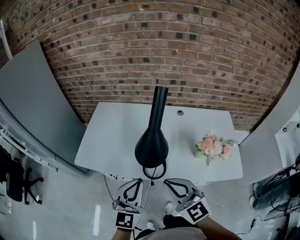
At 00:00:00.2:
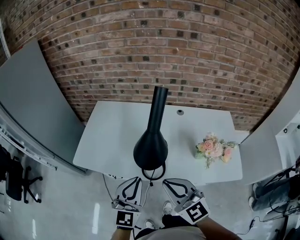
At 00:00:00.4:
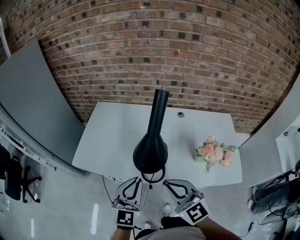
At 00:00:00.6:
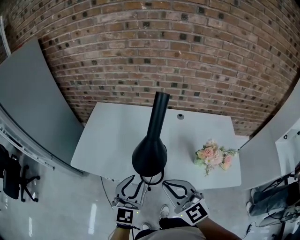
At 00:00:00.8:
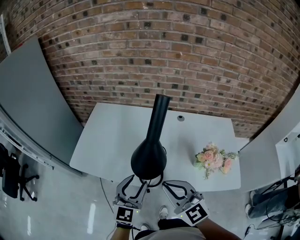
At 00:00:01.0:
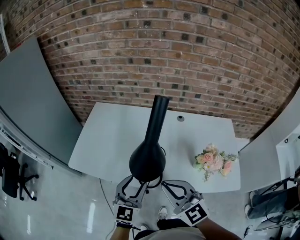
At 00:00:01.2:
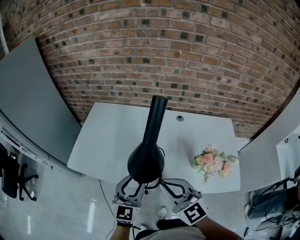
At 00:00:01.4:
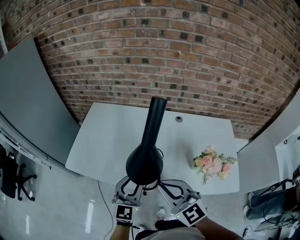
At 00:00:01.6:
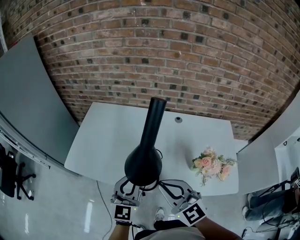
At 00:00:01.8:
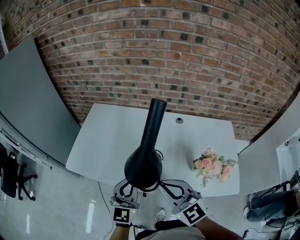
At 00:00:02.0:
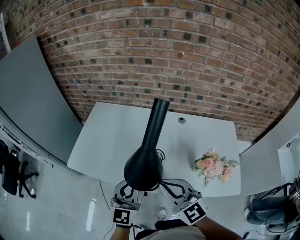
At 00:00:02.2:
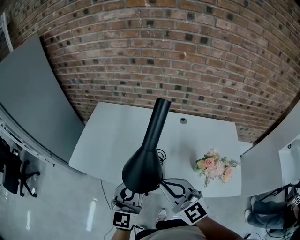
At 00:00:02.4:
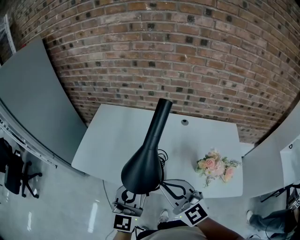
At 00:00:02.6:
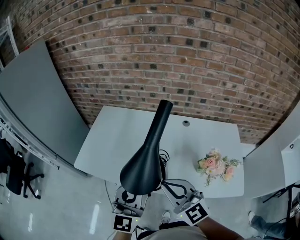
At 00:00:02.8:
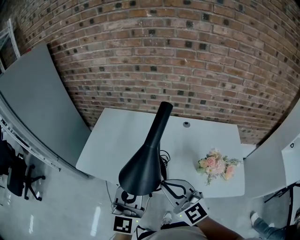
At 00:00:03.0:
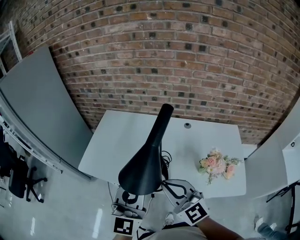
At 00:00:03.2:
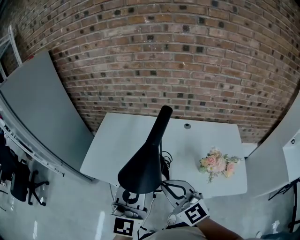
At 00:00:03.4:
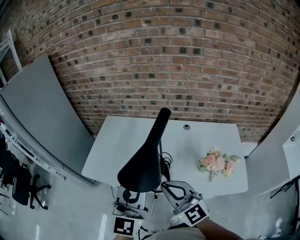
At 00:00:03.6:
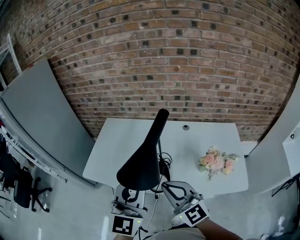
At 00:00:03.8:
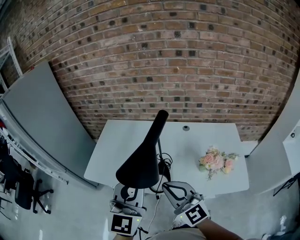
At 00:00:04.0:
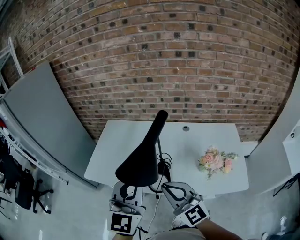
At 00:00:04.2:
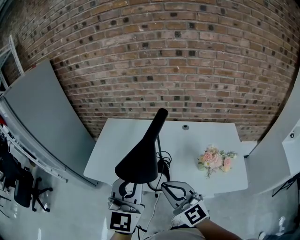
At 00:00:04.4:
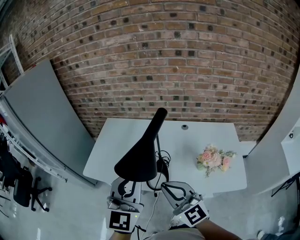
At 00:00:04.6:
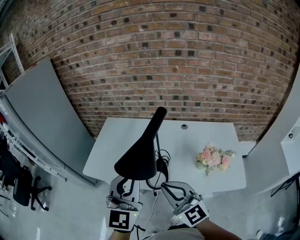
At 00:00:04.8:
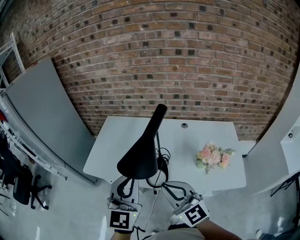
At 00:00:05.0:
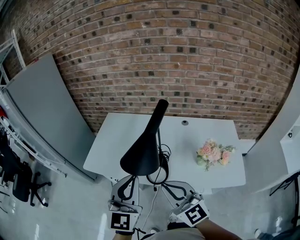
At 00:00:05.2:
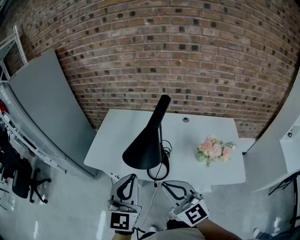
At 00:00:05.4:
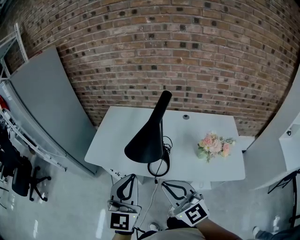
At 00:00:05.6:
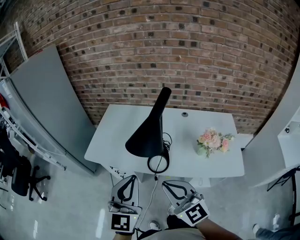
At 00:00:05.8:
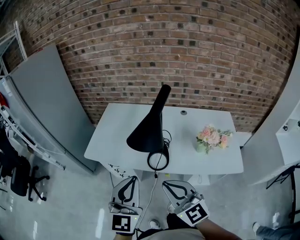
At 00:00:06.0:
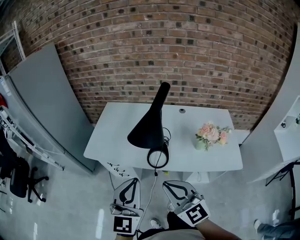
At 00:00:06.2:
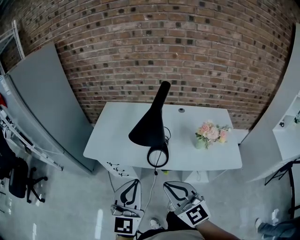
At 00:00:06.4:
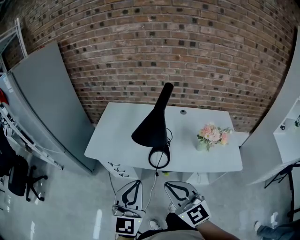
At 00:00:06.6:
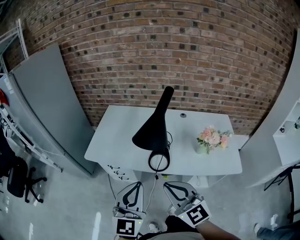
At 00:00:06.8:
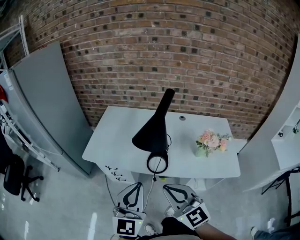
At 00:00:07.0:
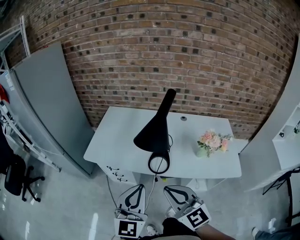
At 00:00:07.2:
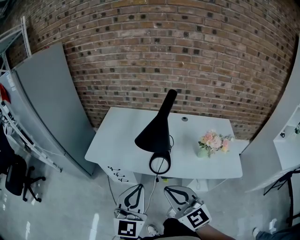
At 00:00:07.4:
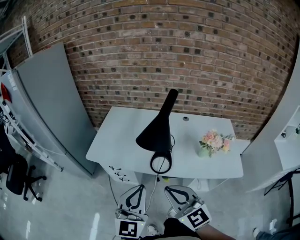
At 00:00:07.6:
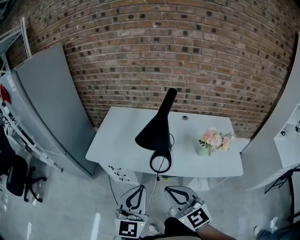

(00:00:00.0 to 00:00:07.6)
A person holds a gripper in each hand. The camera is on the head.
00:00:00.0 - 00:00:01.6: The left gripper moves forward and downward, some 10 cm, and opens, then closes once more; the right gripper moves forward, some 5 cm.
00:00:01.6 - 00:00:03.0: The left gripper heads upward and backward, covering some 15 cm.
00:00:03.0 - 00:00:04.6: The right gripper ends up some 5 cm from where it was. Meanwhile the left gripper travels upward by approximately 5 cm.
00:00:04.6 - 00:00:06.0: The right gripper heads backward and to the left, covering approximately 10 cm. Meanwhile the left gripper travels backward, downward and to the left by approximately 15 cm.
00:00:06.0 - 00:00:07.6: The grippers stay close to where they were, moving slightly.

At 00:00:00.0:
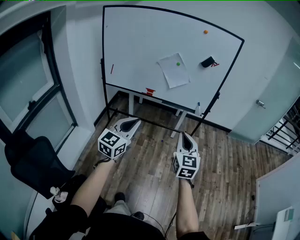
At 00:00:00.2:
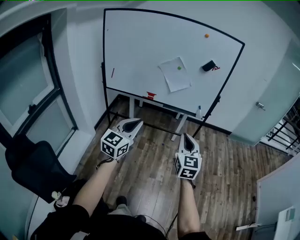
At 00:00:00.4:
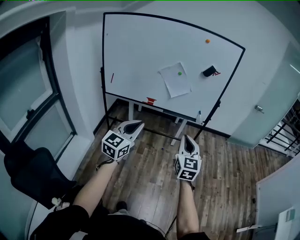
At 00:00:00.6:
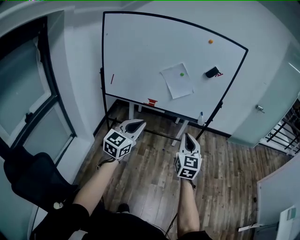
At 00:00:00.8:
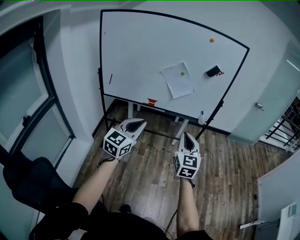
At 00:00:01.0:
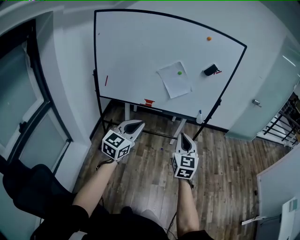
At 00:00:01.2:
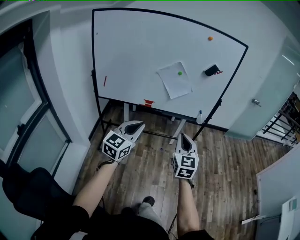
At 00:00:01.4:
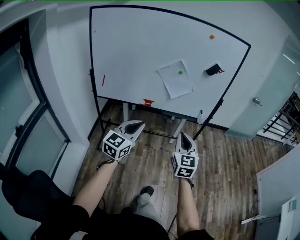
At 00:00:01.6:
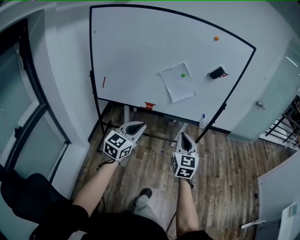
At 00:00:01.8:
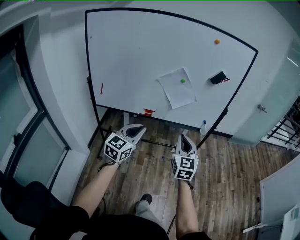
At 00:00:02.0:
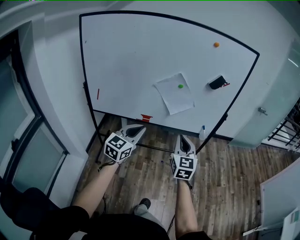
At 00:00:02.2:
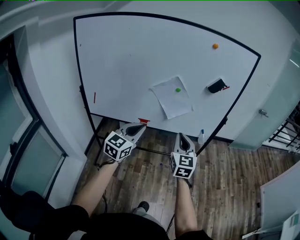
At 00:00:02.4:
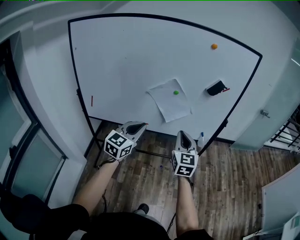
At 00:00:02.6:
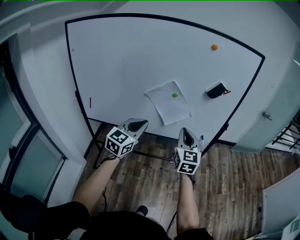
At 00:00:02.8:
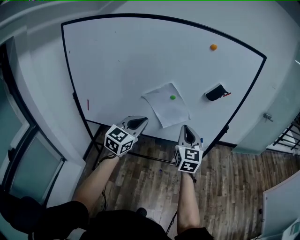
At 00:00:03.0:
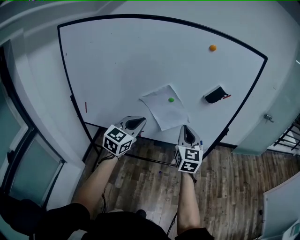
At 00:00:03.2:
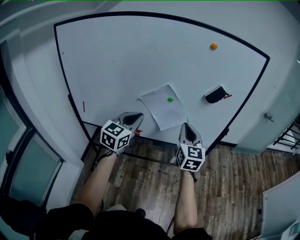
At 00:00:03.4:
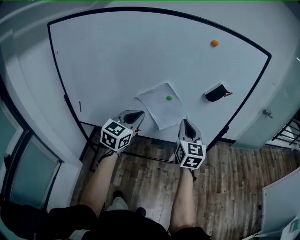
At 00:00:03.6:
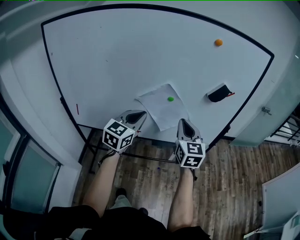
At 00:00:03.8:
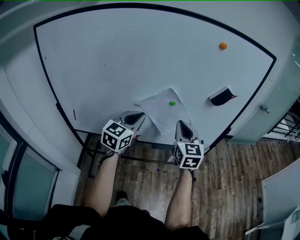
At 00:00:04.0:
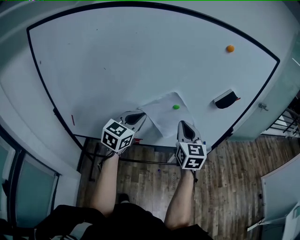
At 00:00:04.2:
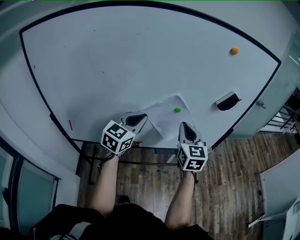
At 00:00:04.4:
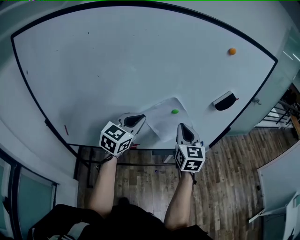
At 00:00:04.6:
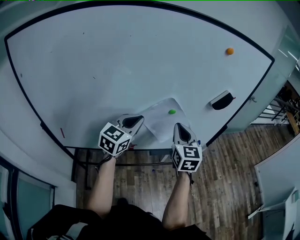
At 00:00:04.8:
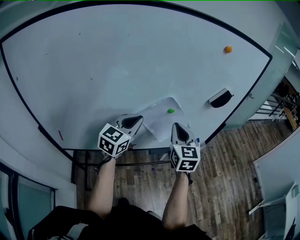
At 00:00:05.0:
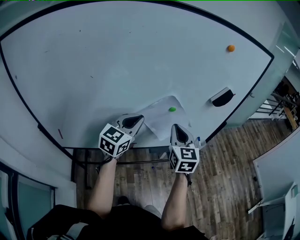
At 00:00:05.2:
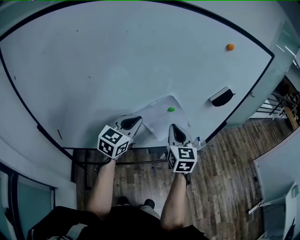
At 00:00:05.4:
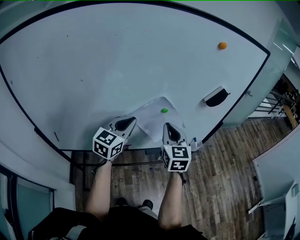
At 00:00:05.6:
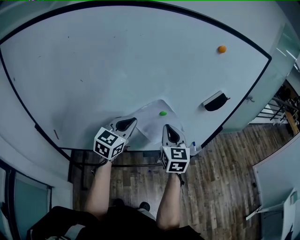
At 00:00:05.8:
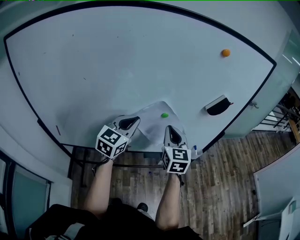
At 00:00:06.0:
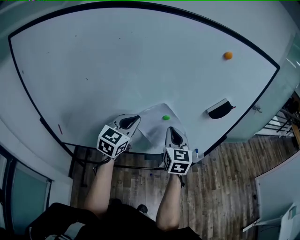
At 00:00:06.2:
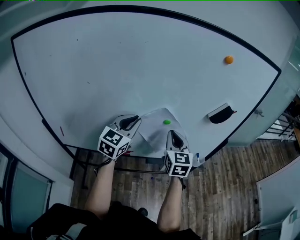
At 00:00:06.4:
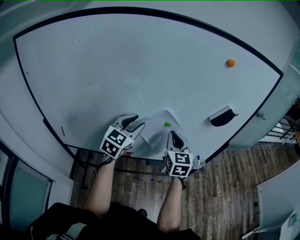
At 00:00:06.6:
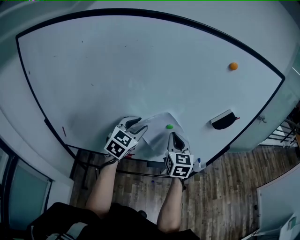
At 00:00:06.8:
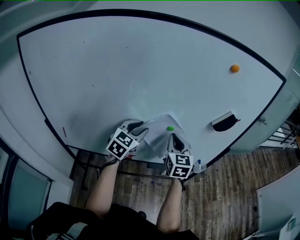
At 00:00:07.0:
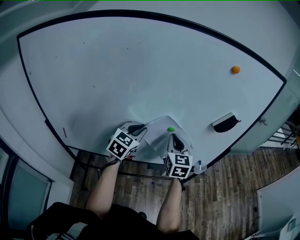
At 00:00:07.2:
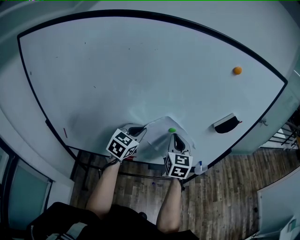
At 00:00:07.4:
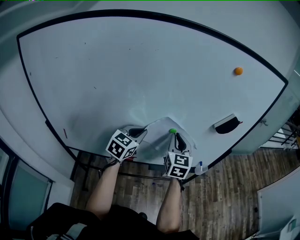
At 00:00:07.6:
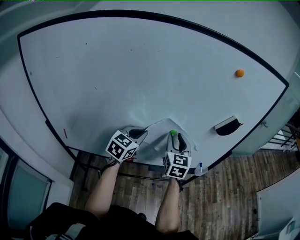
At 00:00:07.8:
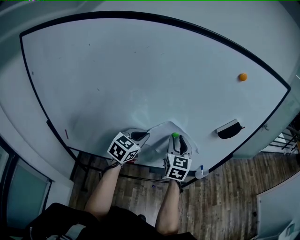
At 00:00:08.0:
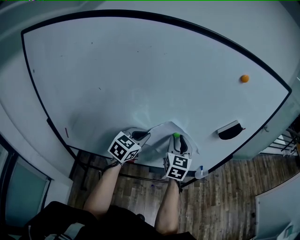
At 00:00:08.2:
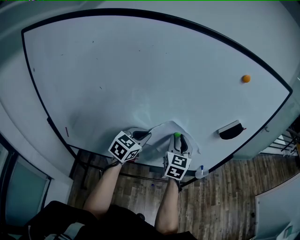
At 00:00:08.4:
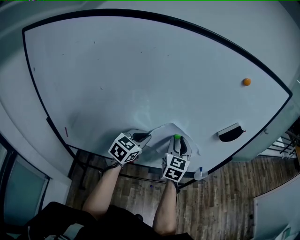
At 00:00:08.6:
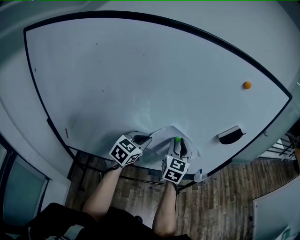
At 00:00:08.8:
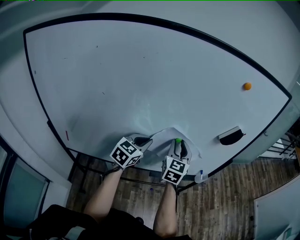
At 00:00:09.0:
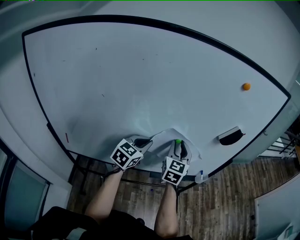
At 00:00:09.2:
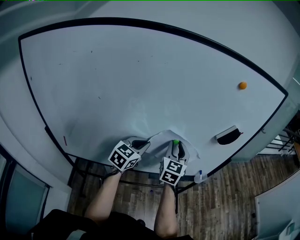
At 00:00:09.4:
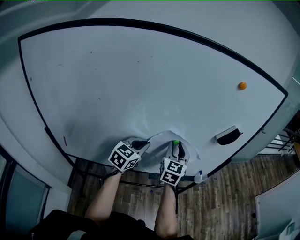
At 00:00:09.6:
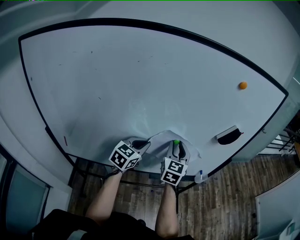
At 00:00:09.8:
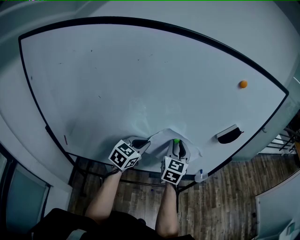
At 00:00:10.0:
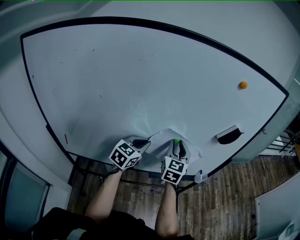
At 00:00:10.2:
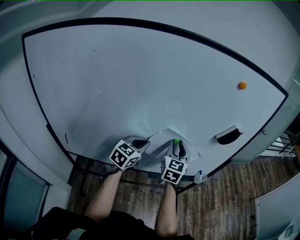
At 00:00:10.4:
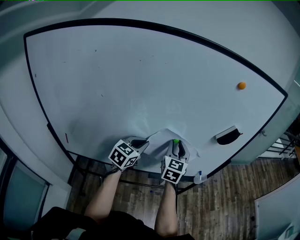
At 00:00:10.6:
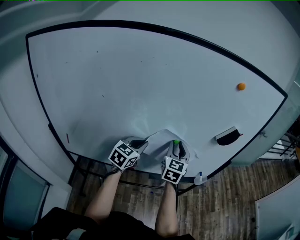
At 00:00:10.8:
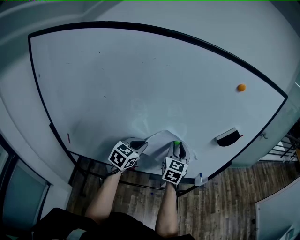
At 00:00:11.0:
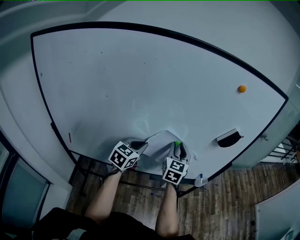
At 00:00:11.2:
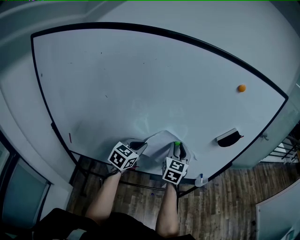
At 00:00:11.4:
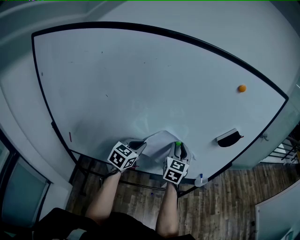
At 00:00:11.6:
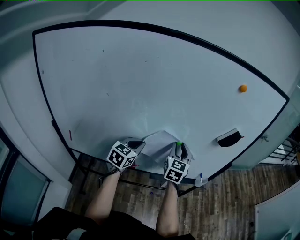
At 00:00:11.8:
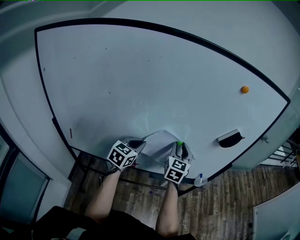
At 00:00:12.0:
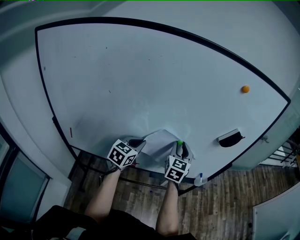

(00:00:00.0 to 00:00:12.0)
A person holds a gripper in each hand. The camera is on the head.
00:00:00.0 - 00:00:01.6: Both grippers travel together forward and to the left, approximately 20 cm.
00:00:01.6 - 00:00:03.0: Both grippers move forward, some 30 cm.
00:00:03.0 - 00:00:04.4: Both grippers move forward and to the left, about 15 cm.
00:00:04.4 - 00:00:06.0: There are only small adjustments of the grippers.
00:00:06.0 - 00:00:07.6: The left gripper changes place by approximately 5 cm, and opens, then closes once more; the right gripper opens its fingers.
00:00:07.6 - 00:00:09.0: The grippers move only a little.
00:00:09.0 - 00:00:10.4: Neither gripper changes place.
00:00:10.4 - 00:00:12.0: The grippers move only a little.

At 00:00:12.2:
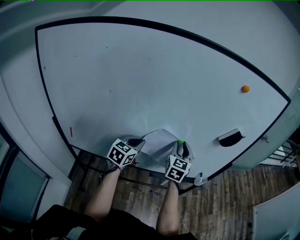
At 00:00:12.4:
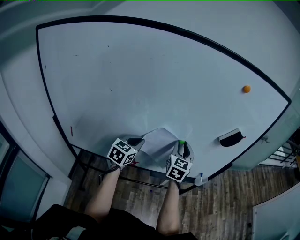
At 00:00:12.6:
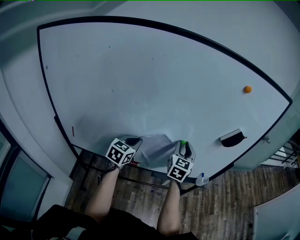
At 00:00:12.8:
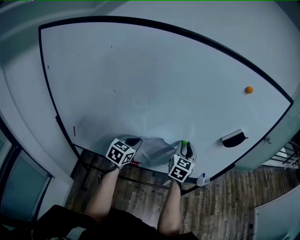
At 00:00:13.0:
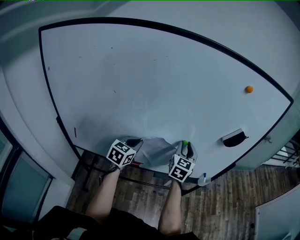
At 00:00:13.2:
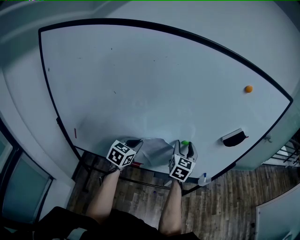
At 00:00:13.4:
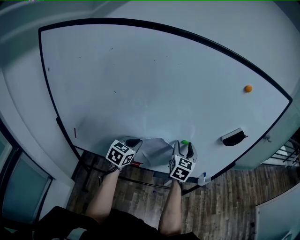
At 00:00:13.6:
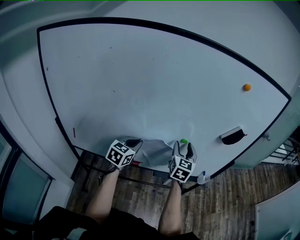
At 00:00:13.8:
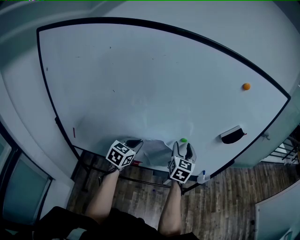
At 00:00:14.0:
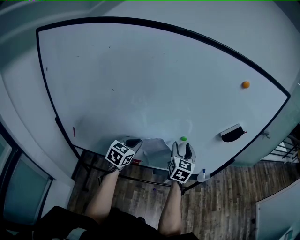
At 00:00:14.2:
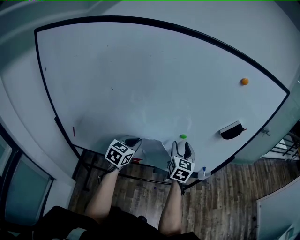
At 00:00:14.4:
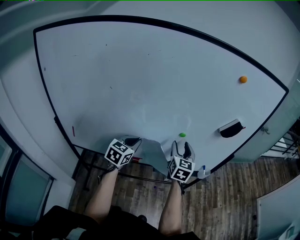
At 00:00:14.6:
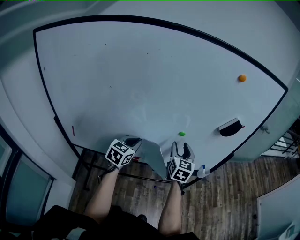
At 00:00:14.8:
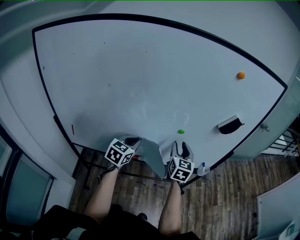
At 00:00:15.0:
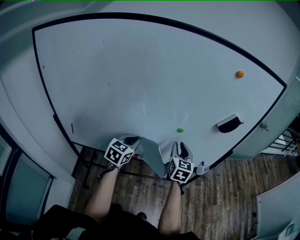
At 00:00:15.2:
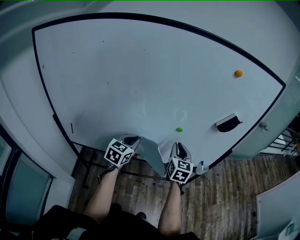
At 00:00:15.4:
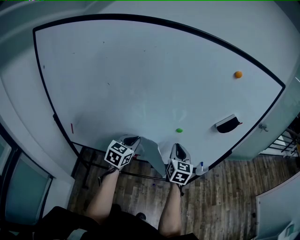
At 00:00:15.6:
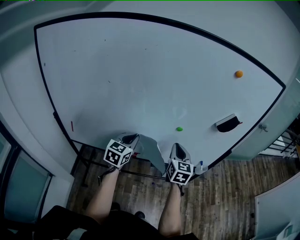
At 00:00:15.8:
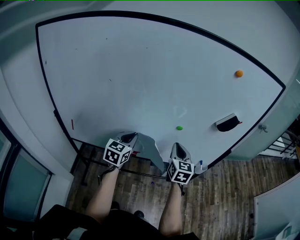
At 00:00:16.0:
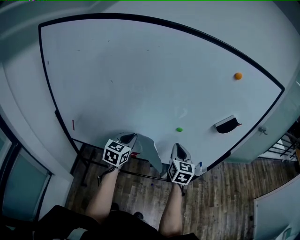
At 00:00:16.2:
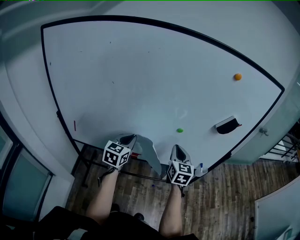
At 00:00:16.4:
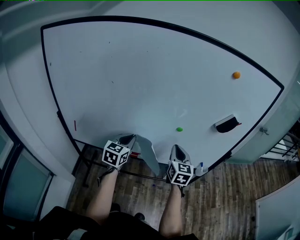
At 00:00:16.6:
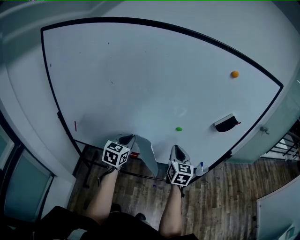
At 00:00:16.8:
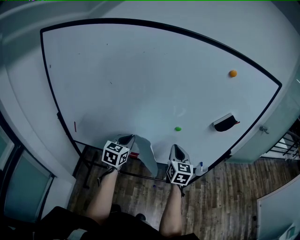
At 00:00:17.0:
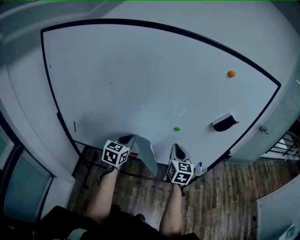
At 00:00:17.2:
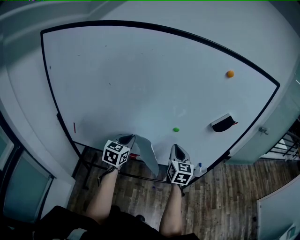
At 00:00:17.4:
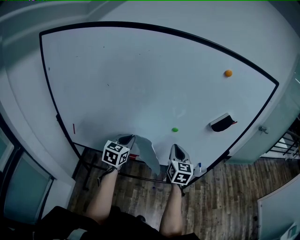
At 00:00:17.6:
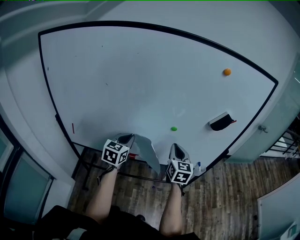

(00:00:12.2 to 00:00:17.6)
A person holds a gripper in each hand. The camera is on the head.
00:00:12.2 - 00:00:13.6: The right gripper opens up.
00:00:13.6 - 00:00:15.0: The right gripper ends up about 5 cm from where it was, and closes.
00:00:15.0 - 00:00:16.2: The right gripper closes up.
00:00:16.2 - 00:00:17.6: The grippers move only a little.
